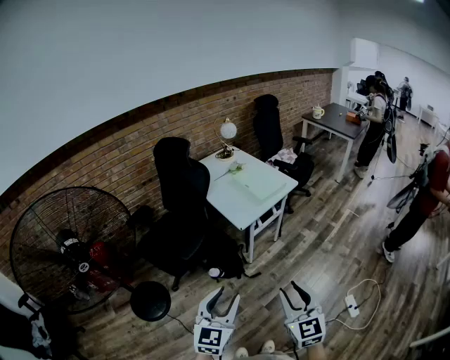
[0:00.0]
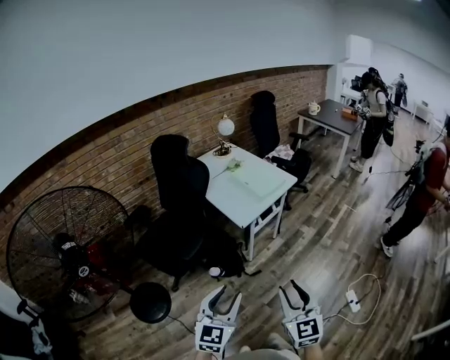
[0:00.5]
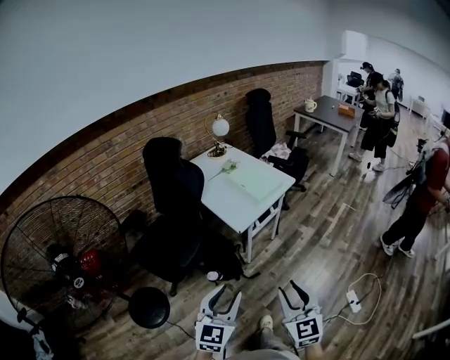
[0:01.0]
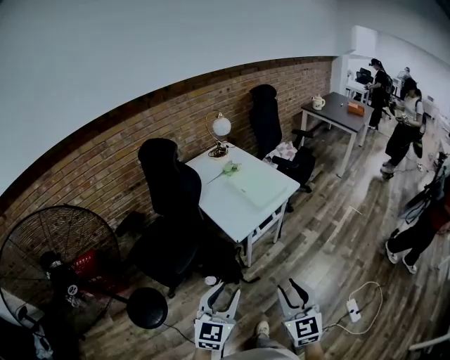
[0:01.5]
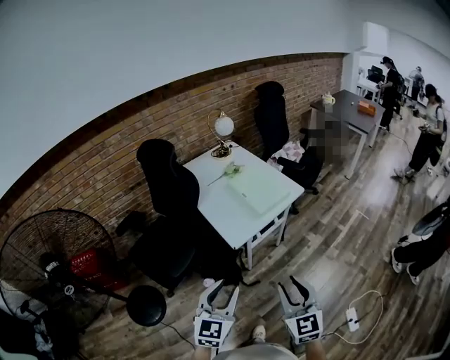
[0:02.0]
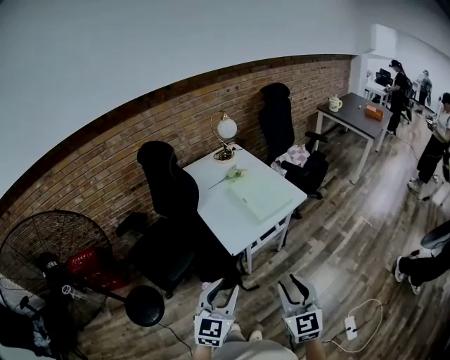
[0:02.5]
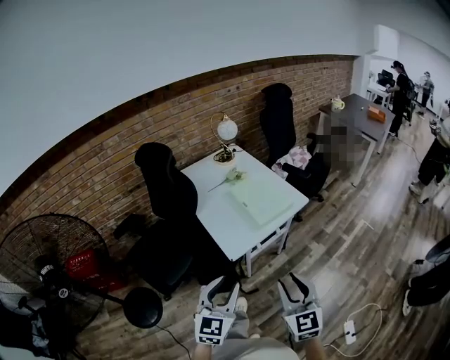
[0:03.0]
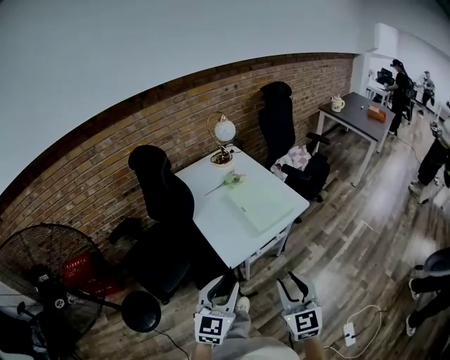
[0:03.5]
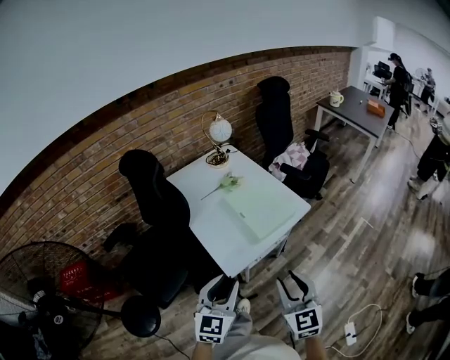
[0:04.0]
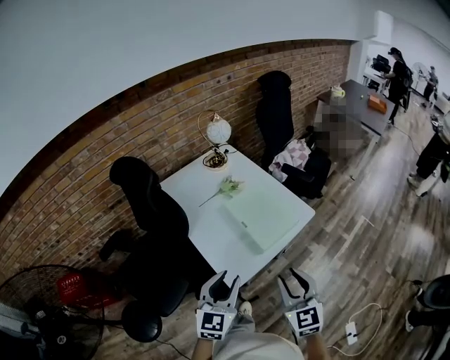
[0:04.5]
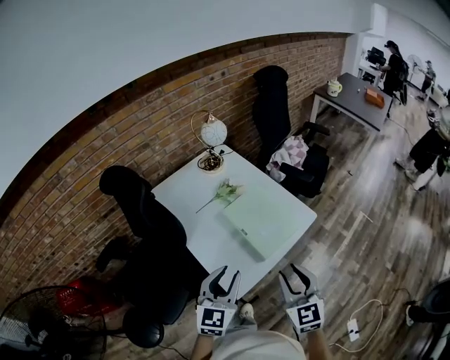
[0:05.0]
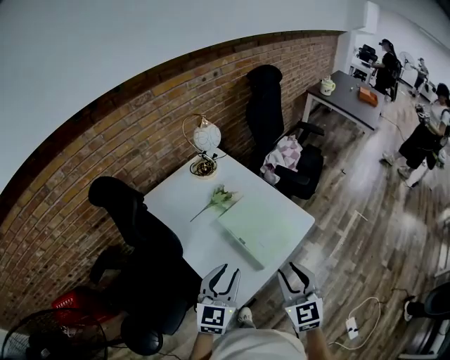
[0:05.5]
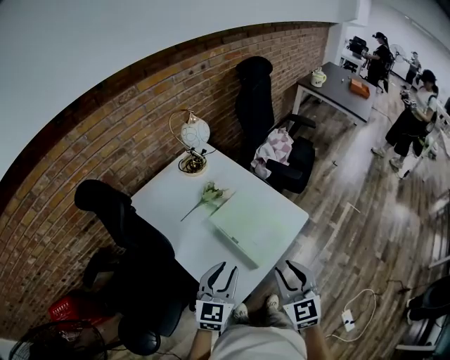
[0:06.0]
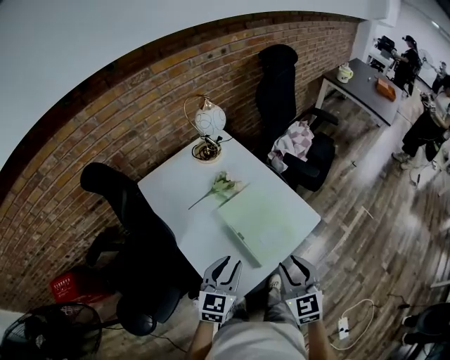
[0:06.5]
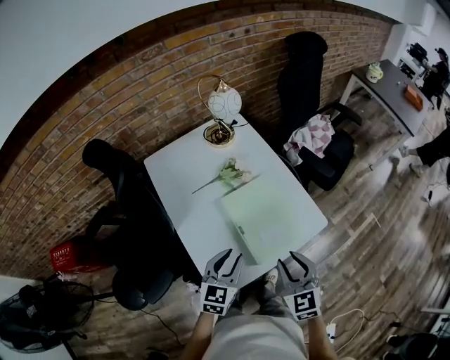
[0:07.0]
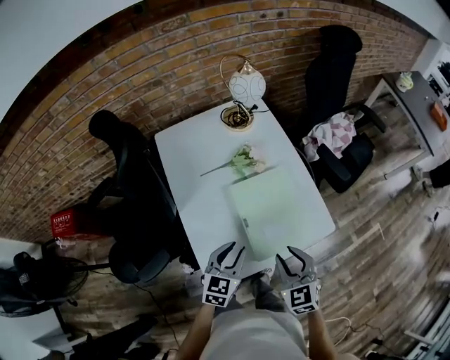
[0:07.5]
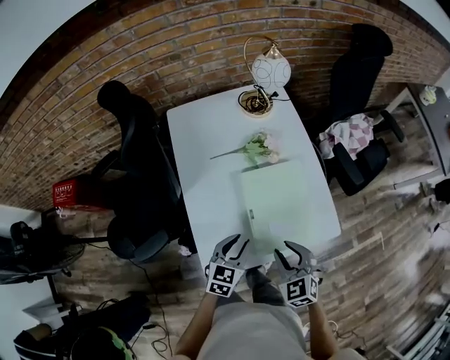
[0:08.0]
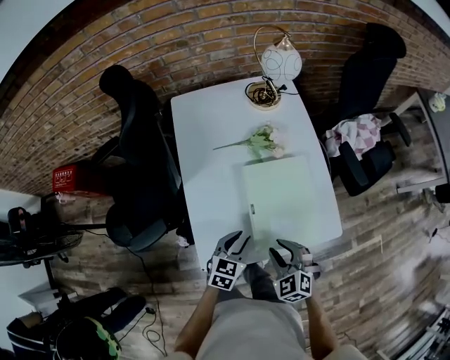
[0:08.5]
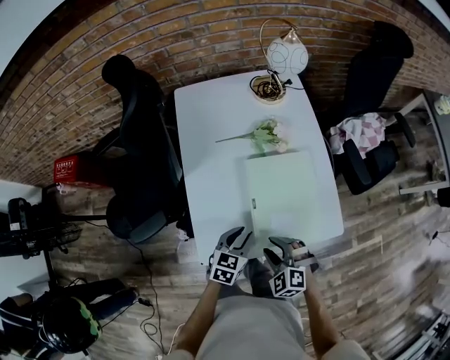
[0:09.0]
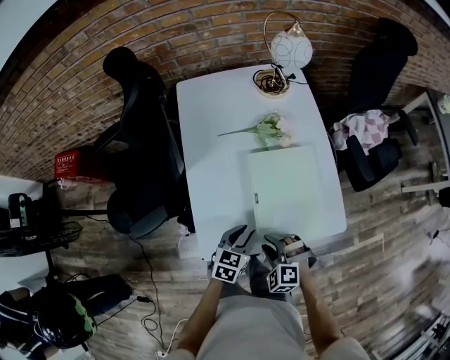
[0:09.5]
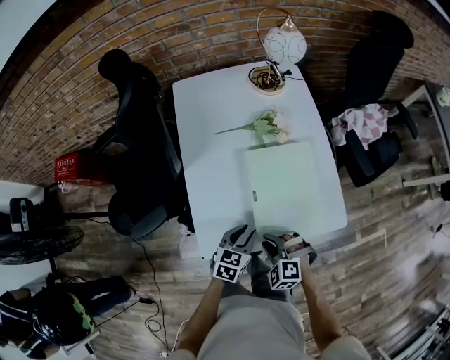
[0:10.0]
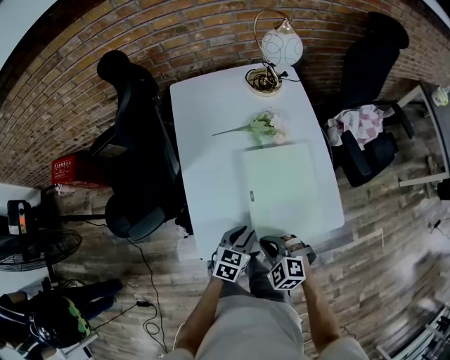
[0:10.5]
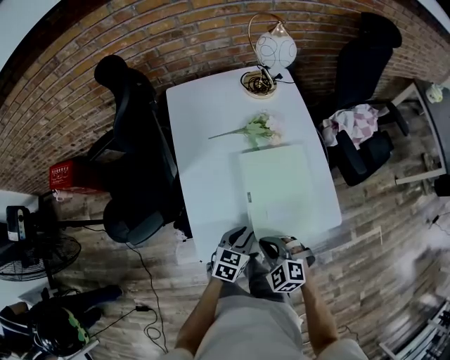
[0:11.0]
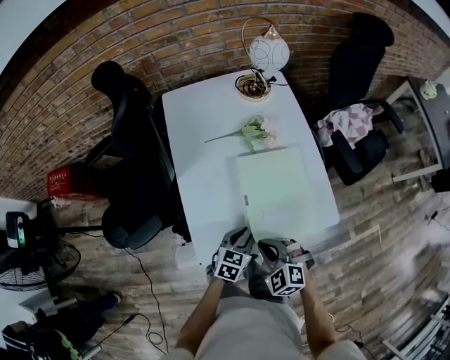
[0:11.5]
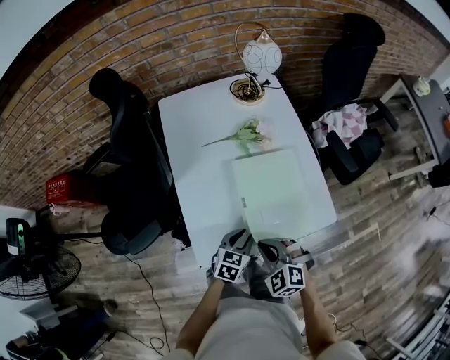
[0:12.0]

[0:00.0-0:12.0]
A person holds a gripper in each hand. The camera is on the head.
0:00.0 to 0:02.0: Both grippers move forward, roughly 20 cm.
0:02.0 to 0:04.0: The grippers both shift forward by roughly 20 cm.
0:04.0 to 0:06.0: The grippers both shift forward by about 25 cm.
0:06.0 to 0:08.0: The grippers both shift downward by about 15 cm. The left gripper swivels roughly 30 degrees; the right gripper changes its angle by approximately 40 degrees.
0:08.0 to 0:10.0: The left gripper heads downward, covering some 10 cm. Meanwhile the right gripper heads downward, covering about 10 cm, and rotates about 40 degrees.
0:10.0 to 0:12.0: The right gripper heads upward, covering some 5 cm, and closes up.

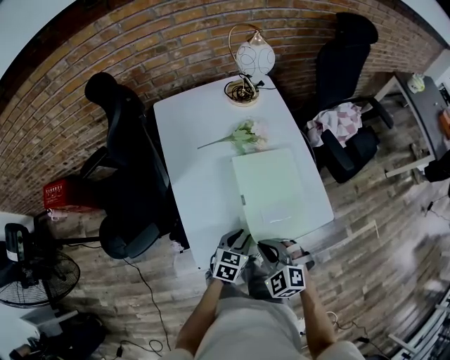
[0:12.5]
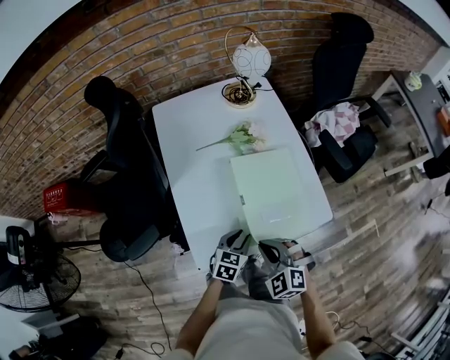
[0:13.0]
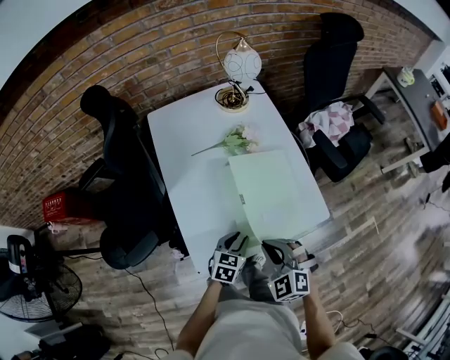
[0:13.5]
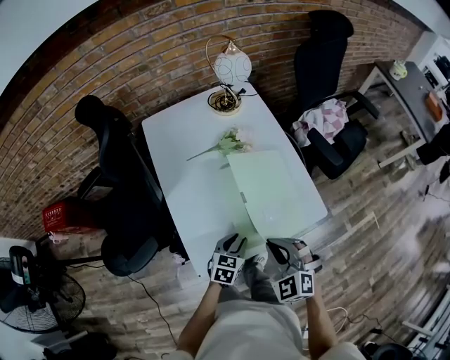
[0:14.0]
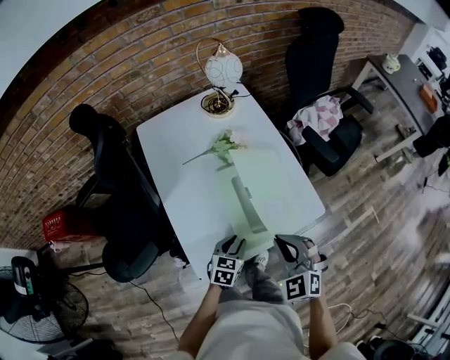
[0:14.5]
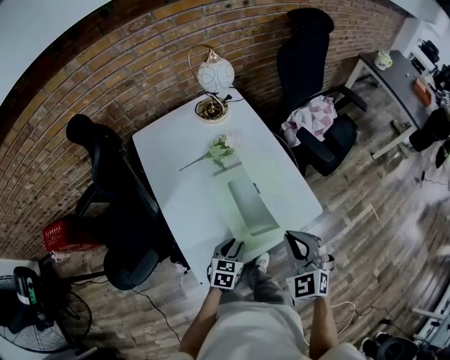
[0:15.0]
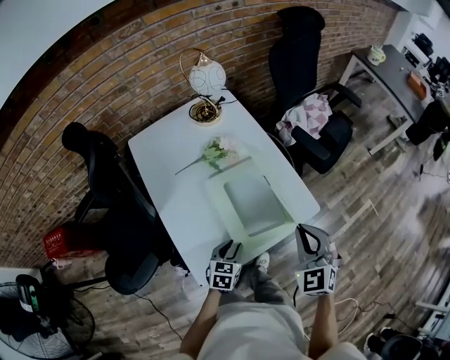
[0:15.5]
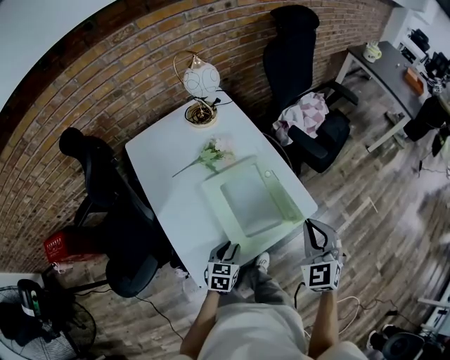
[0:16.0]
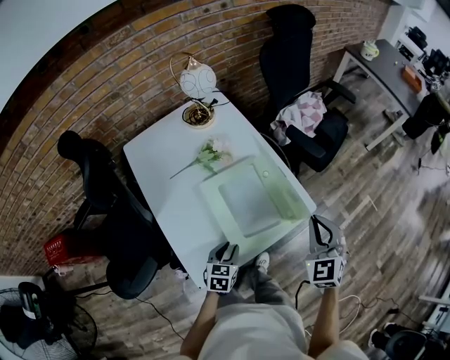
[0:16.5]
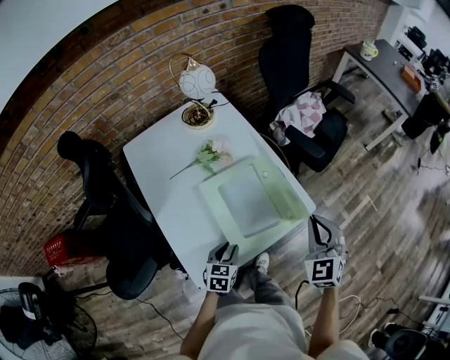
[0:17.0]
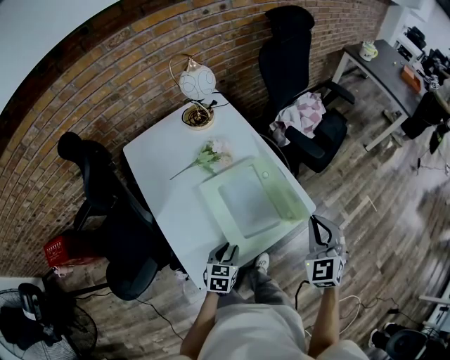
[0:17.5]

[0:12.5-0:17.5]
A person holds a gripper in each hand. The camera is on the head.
0:12.5 to 0:15.0: The right gripper travels upward and to the right by some 15 cm, and swivels approximately 30 degrees.
0:15.0 to 0:17.5: The right gripper heads to the right and forward, covering approximately 10 cm.

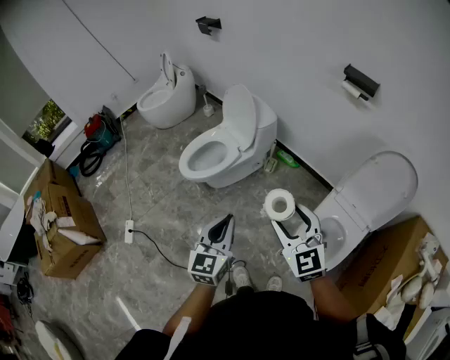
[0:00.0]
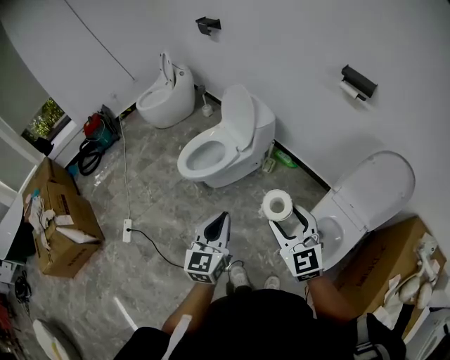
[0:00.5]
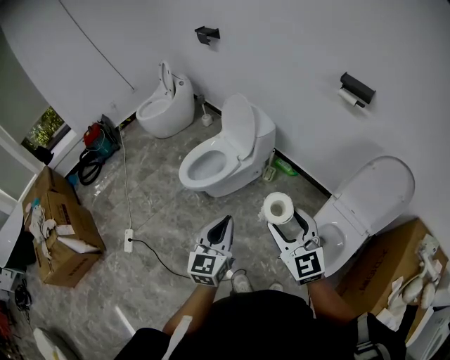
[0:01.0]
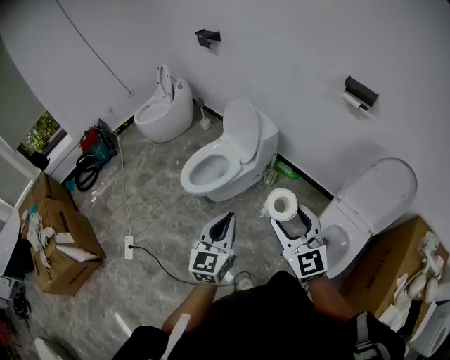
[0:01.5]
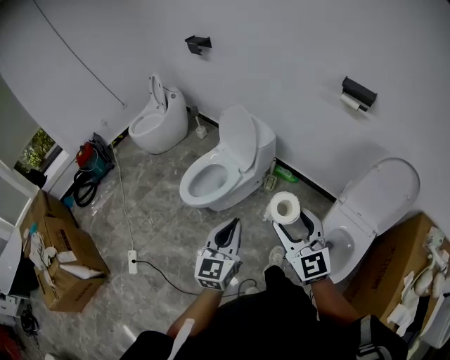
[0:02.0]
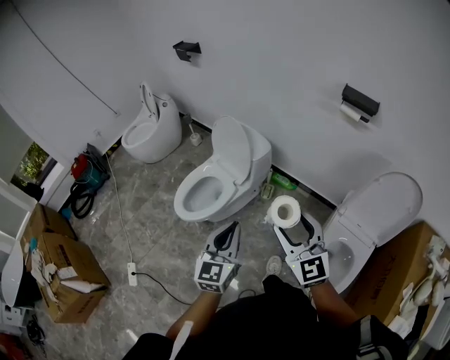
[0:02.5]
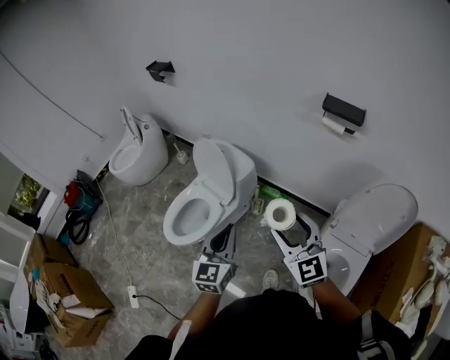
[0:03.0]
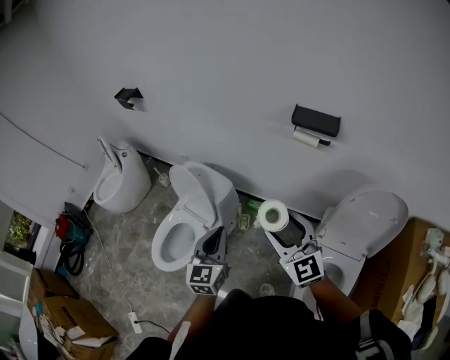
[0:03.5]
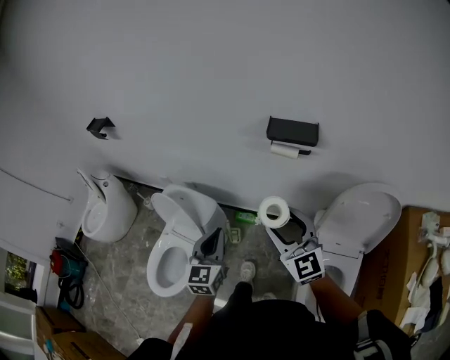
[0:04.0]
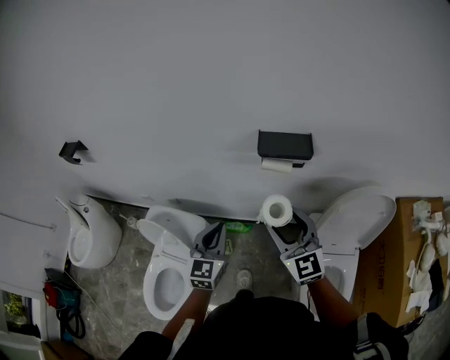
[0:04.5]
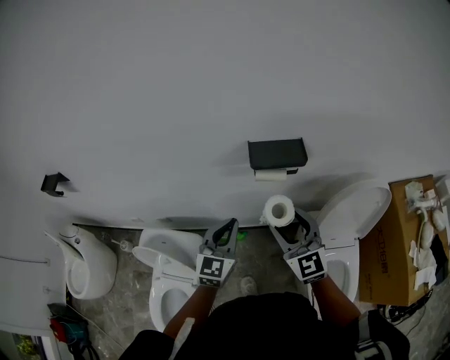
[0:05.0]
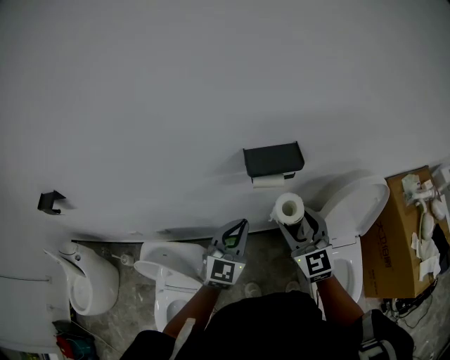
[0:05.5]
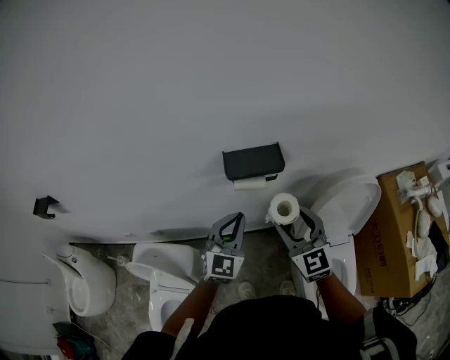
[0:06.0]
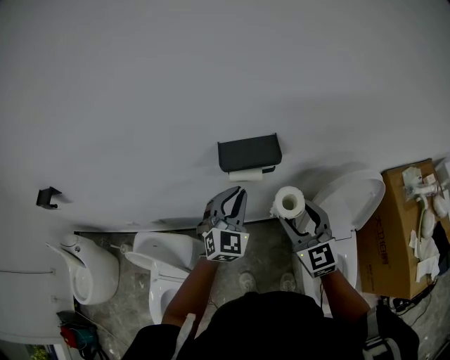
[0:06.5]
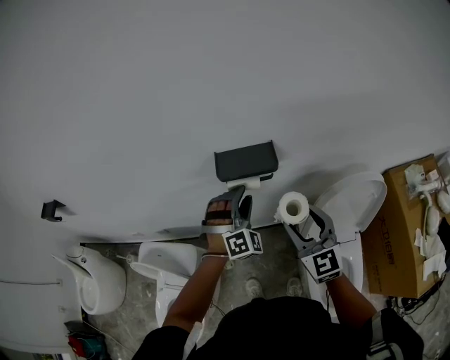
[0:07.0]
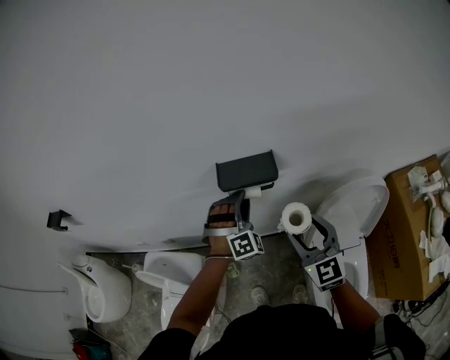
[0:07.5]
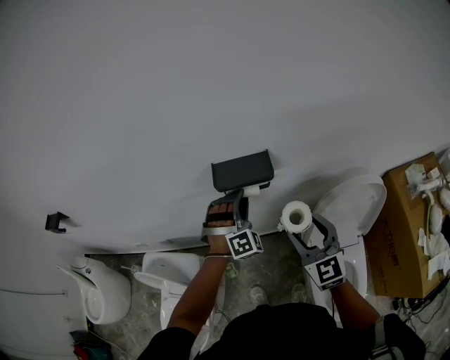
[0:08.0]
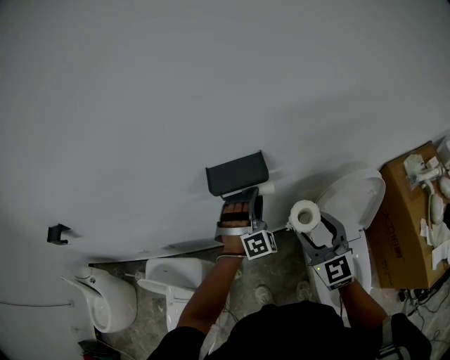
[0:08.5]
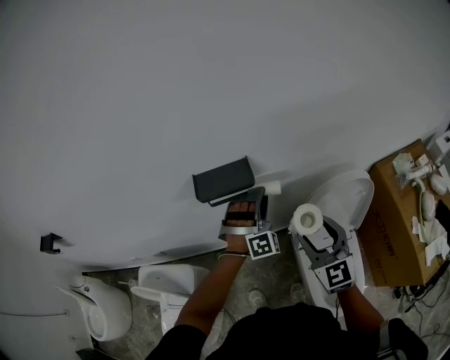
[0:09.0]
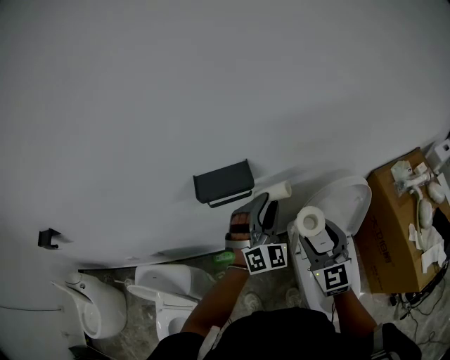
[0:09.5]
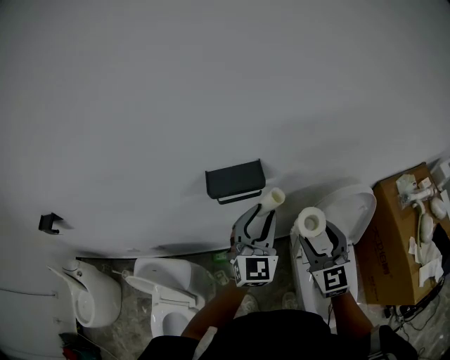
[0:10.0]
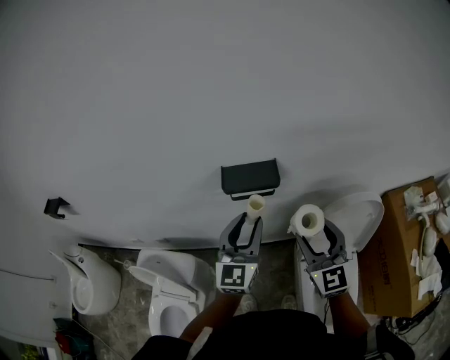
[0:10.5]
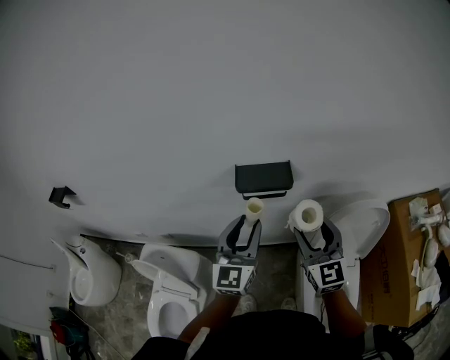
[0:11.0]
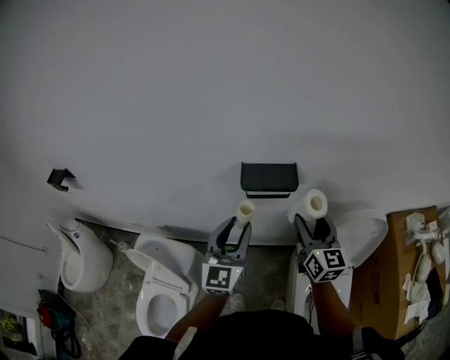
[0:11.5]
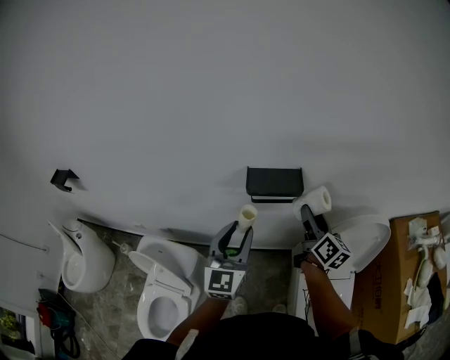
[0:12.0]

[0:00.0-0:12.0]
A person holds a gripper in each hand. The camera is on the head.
0:00.0 to 0:02.0: The right gripper shifts some 10 cm forward and to the left; the left gripper goes approximately 10 cm forward.
0:02.0 to 0:04.0: The two grippers travel together, forward and to the right, some 40 cm. The right gripper turns by about 20 degrees.
0:04.0 to 0:06.0: The left gripper ends up approximately 25 cm from where it was, and changes its angle by roughly 40 degrees. The right gripper shifts by about 15 cm, and changes its angle by about 30 degrees.
0:06.0 to 0:08.0: The right gripper heads to the right, covering approximately 5 cm. The left gripper travels forward and to the right by roughly 10 cm, rotates around the line of its fingers by about 50 degrees, clockwise from behind, and opens.
0:08.0 to 0:10.0: The left gripper goes roughly 15 cm upward, backward and to the right, and rotates around the line of its fingers by approximately 50 degrees, counterclockwise from behind. The right gripper travels to the right by some 5 cm.
0:10.0 to 0:12.0: The right gripper travels forward and to the left by about 15 cm, and rotates around the line of its fingers by some 60 degrees, clockwise from behind, while the left gripper travels to the left by approximately 15 cm, and changes its angle by approximately 20 degrees.
